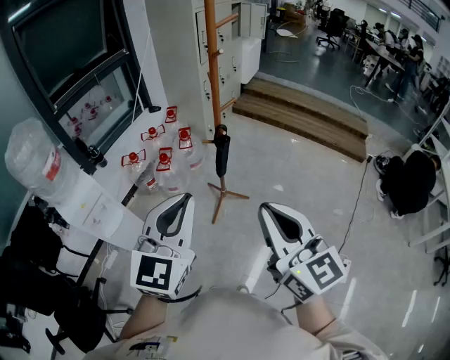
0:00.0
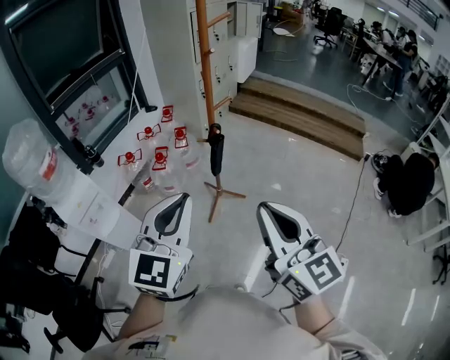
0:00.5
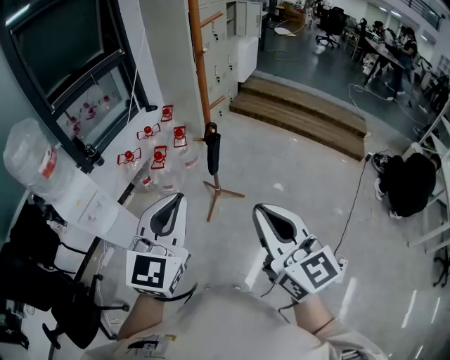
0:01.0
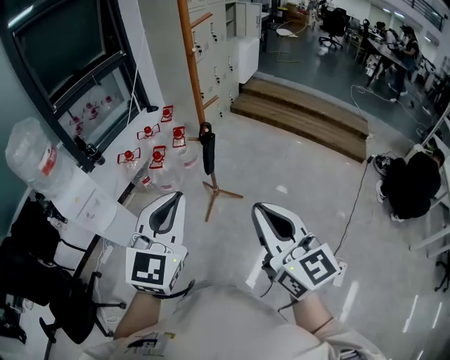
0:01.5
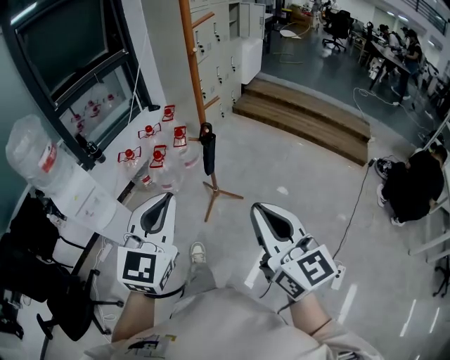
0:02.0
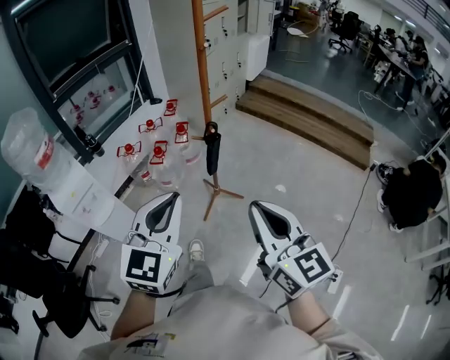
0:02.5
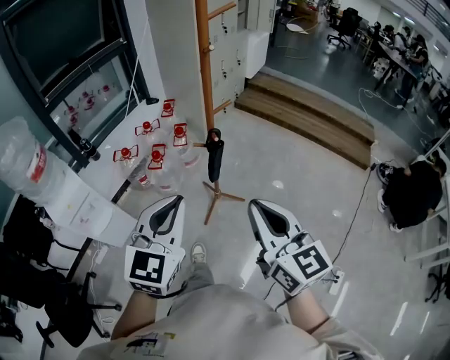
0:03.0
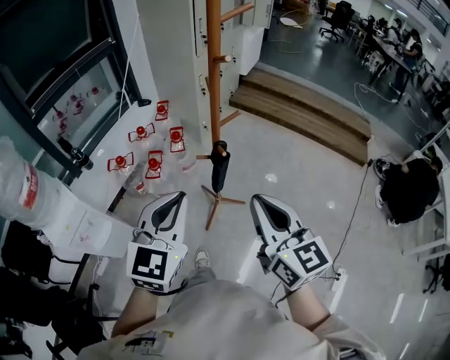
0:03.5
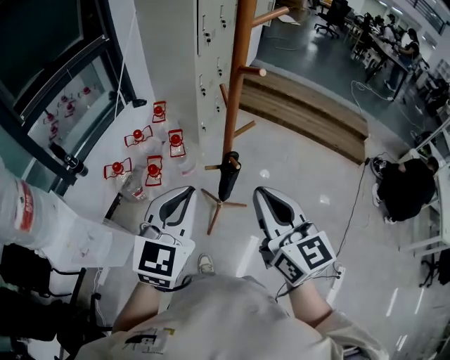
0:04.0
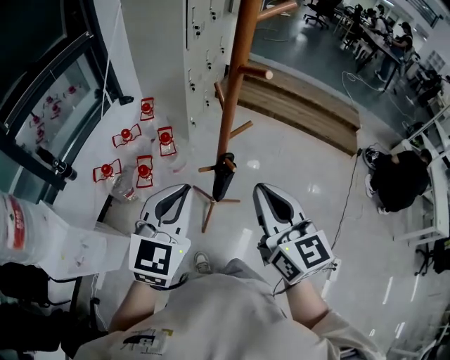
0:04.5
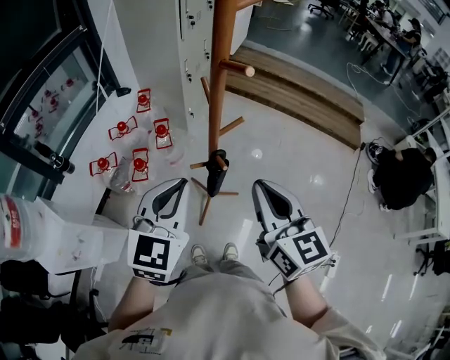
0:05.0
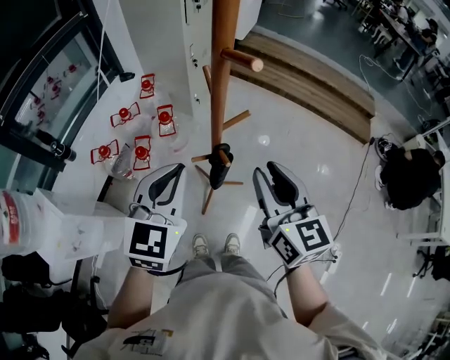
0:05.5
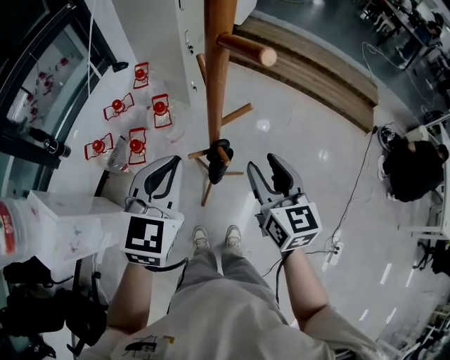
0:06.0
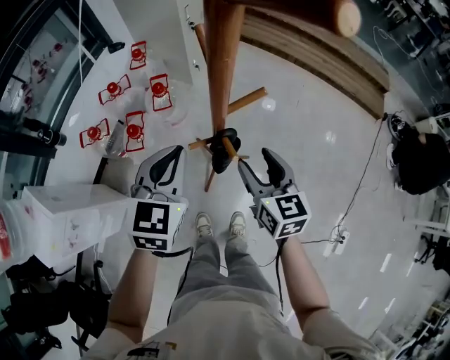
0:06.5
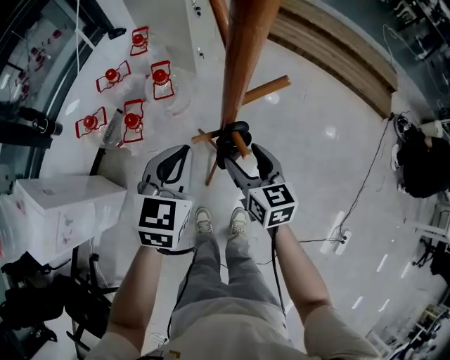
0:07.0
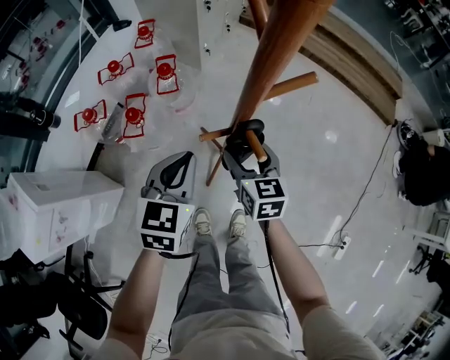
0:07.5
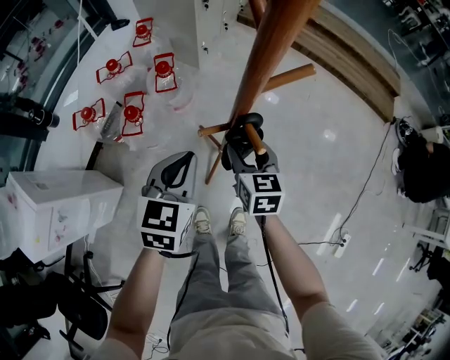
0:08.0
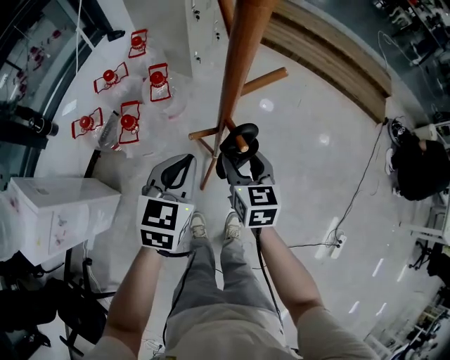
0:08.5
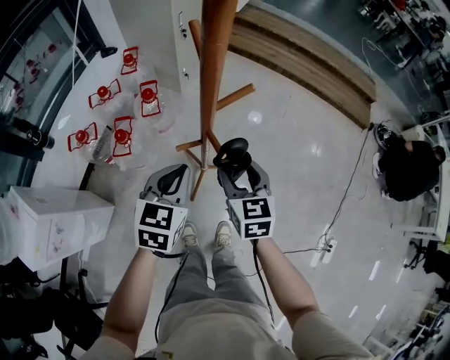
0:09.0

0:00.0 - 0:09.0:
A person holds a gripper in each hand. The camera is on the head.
0:00.0 - 0:02.0: The grippers both shift to the right by some 10 cm.
0:02.0 - 0:04.5: The grippers both shift forward by roughly 35 cm.
0:04.5 - 0:07.0: Both grippers move downward and forward, some 35 cm. The right gripper changes its angle by roughly 20 degrees, and opens up.
0:07.0 - 0:09.0: The right gripper heads upward, covering some 5 cm.

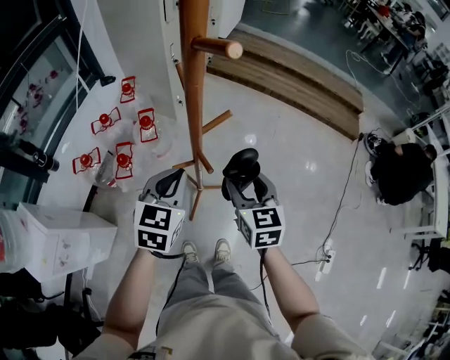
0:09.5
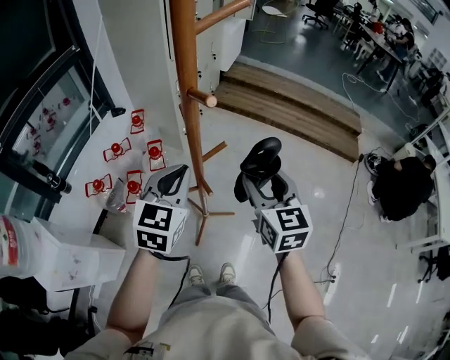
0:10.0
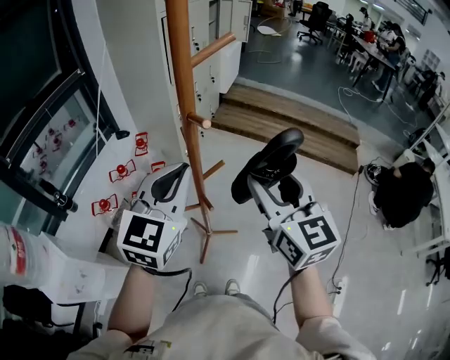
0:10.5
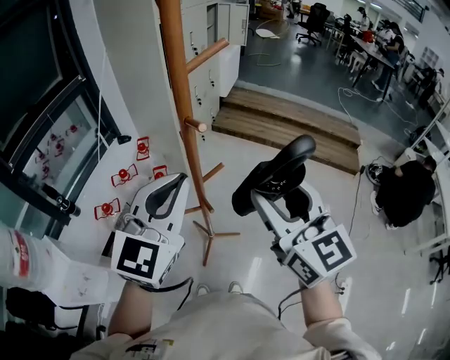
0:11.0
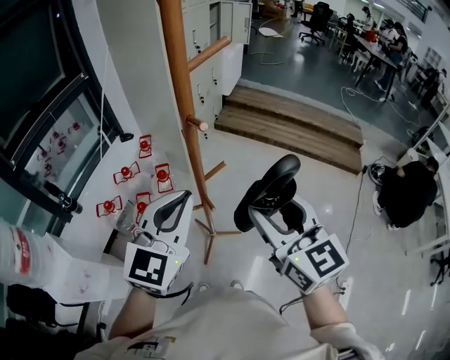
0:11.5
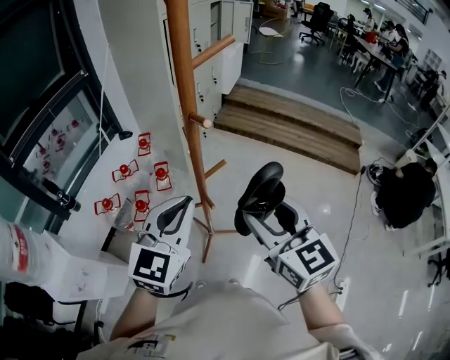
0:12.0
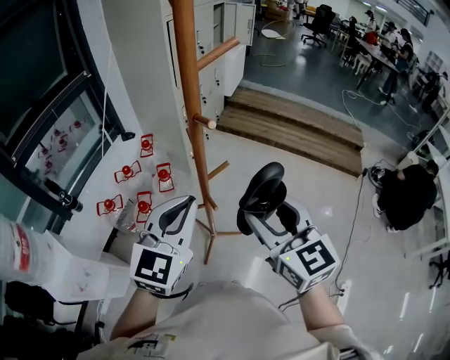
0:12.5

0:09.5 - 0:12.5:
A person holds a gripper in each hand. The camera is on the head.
0:09.5 - 0:11.0: Both grippers travel together upward, about 30 cm. The left gripper rotates approximately 30 degrees. Meanwhile the right gripper changes its angle by approximately 30 degrees.
0:11.0 - 0:12.5: The two grippers go roughly 5 cm downward.

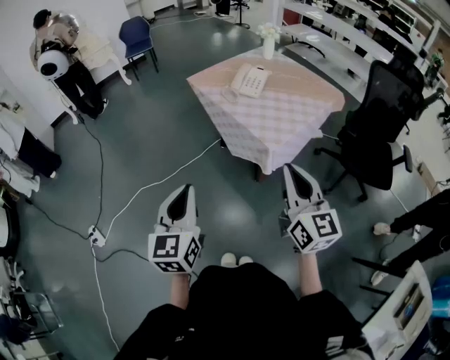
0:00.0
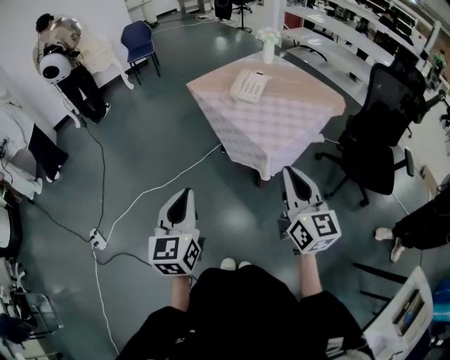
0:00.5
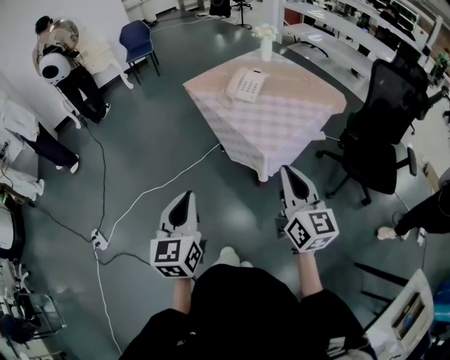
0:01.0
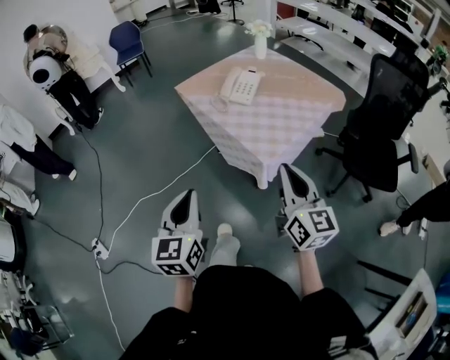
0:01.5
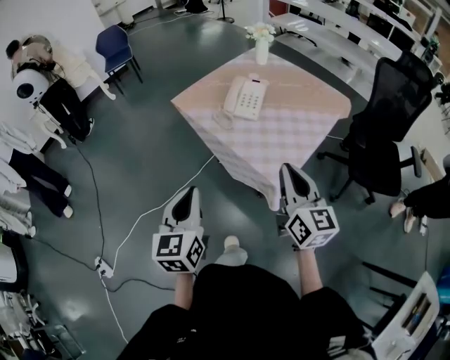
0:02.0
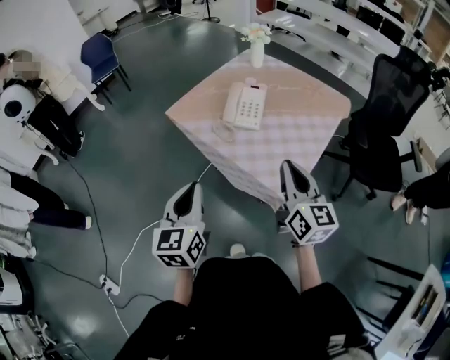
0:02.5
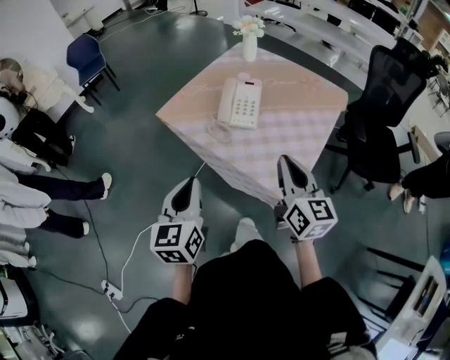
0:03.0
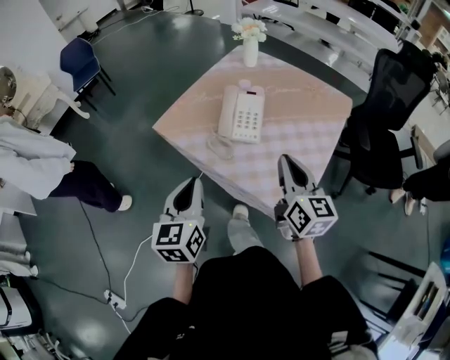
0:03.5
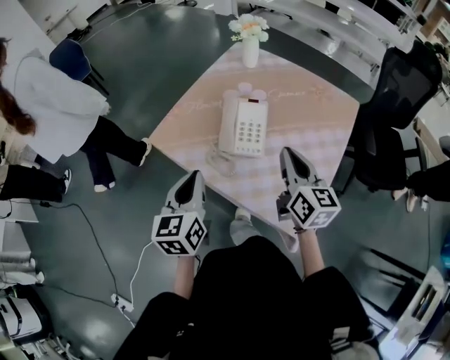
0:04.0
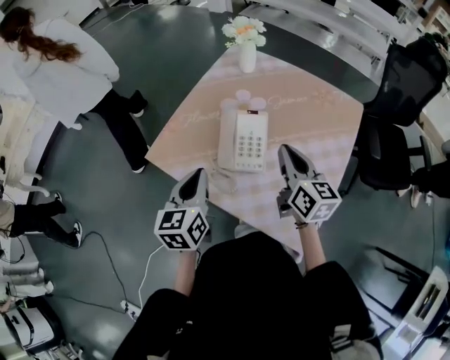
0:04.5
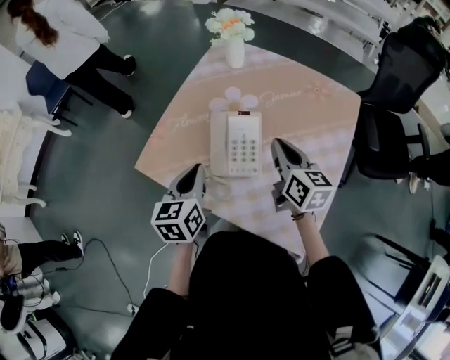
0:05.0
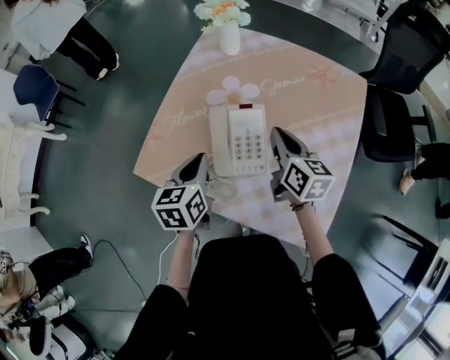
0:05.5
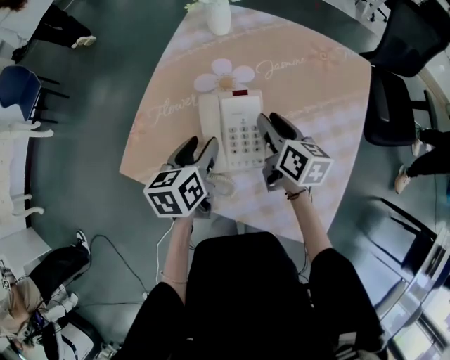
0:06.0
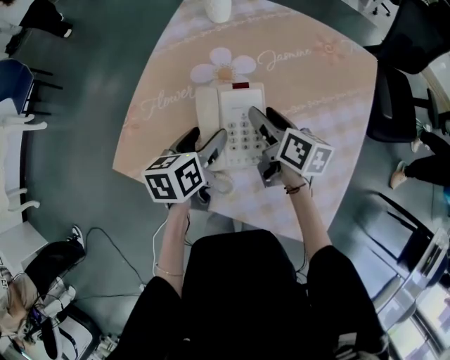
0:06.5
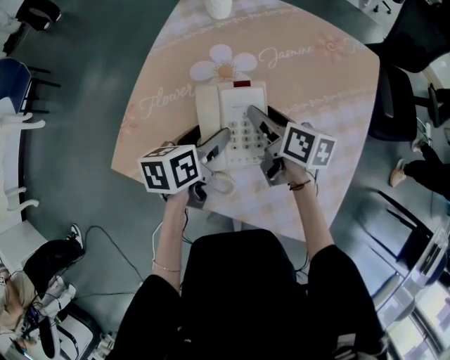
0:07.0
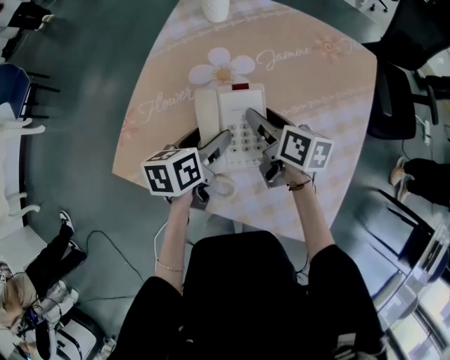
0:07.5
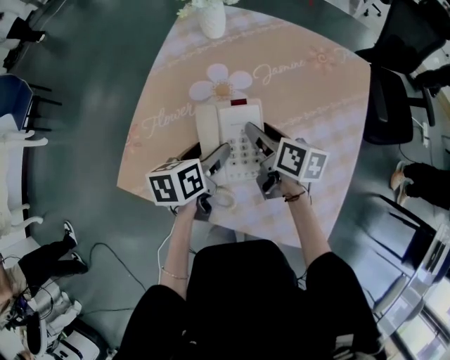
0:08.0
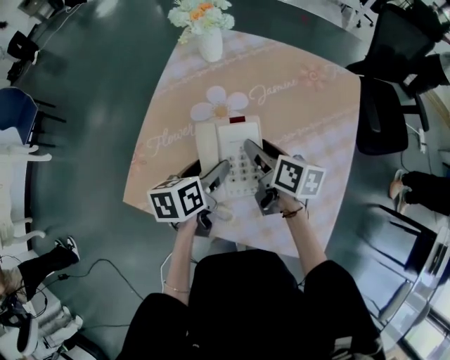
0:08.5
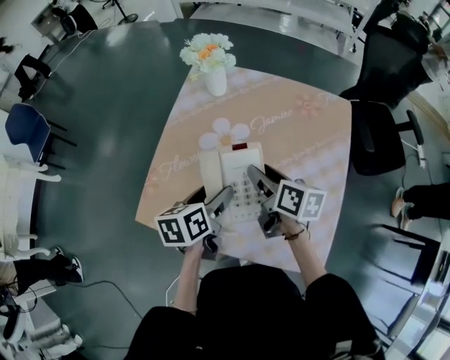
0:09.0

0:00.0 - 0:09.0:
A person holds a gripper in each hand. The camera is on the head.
0:00.0 - 0:02.0: Both grippers move forward, approximately 20 cm.
0:02.0 - 0:04.5: Both grippers travel together forward, about 40 cm.
0:04.5 - 0:07.0: Both grippers travel together downward and forward, some 20 cm. The right gripper rotates about 30 degrees, and opens. The left gripper swivels roughly 40 degrees, and opens its fingers.
0:07.0 - 0:09.0: Both grippers move upward, some 10 cm.

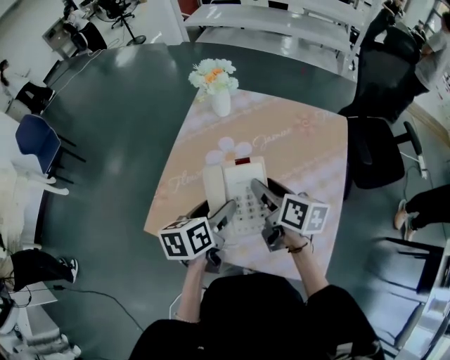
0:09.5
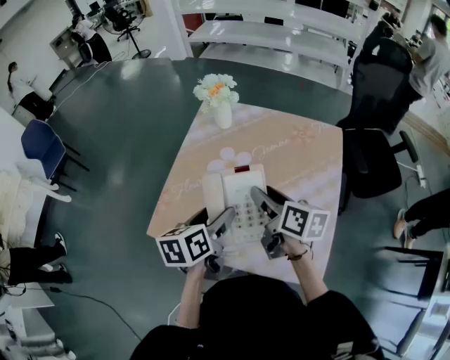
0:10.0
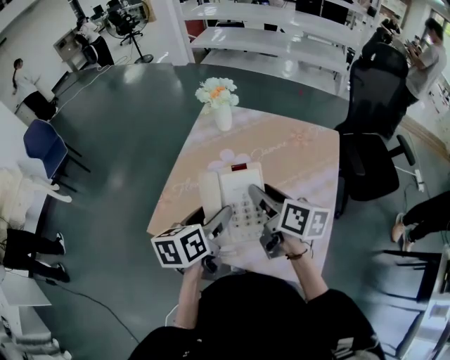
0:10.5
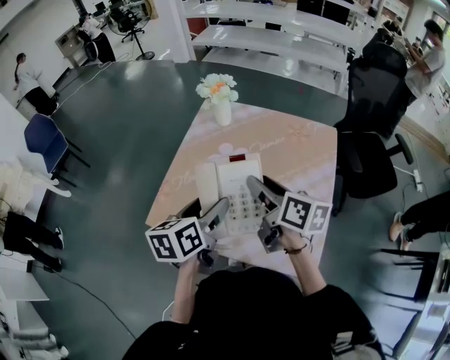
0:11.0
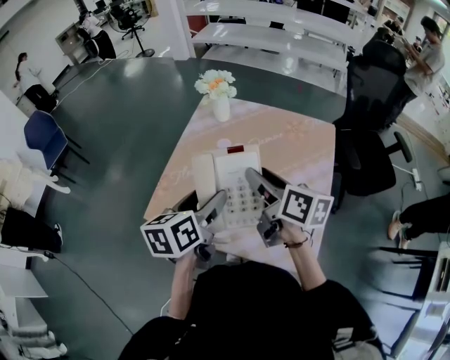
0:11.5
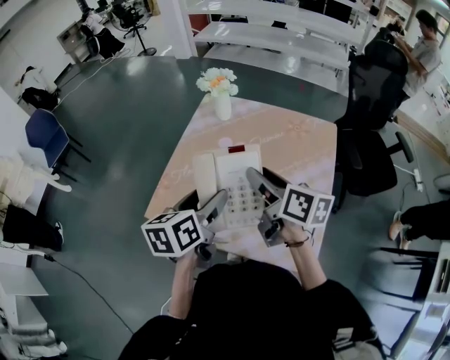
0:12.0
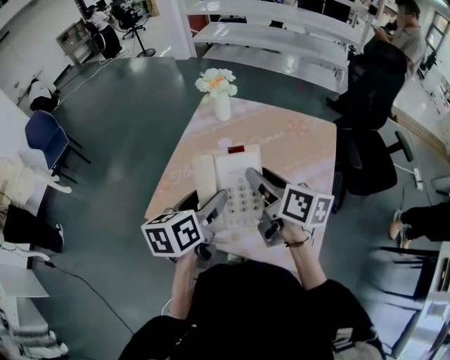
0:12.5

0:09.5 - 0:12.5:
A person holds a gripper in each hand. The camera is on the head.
0:09.5 - 0:11.0: Both grippers move upward, about 10 cm.
0:11.0 - 0:12.5: The grippers move only a little.

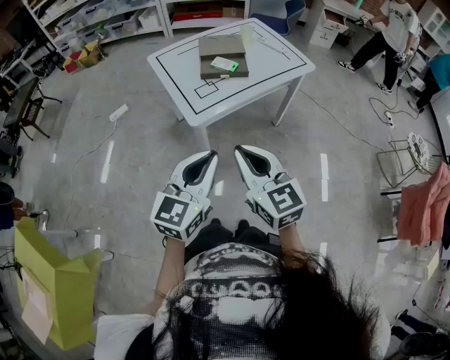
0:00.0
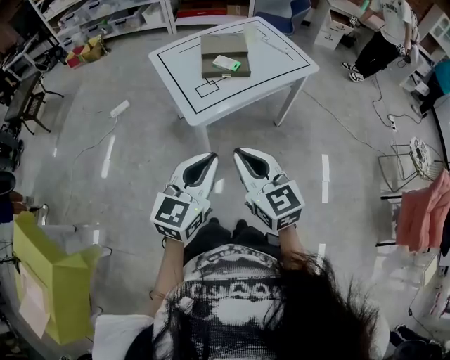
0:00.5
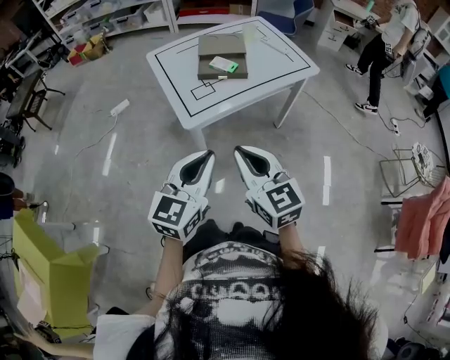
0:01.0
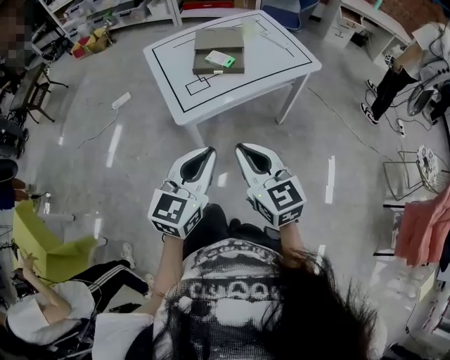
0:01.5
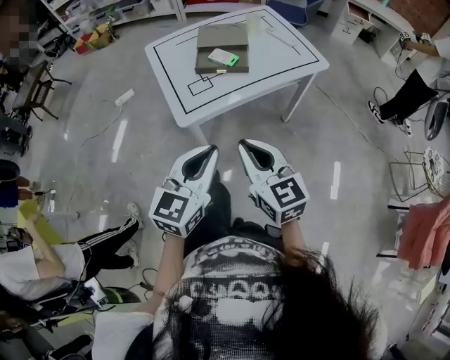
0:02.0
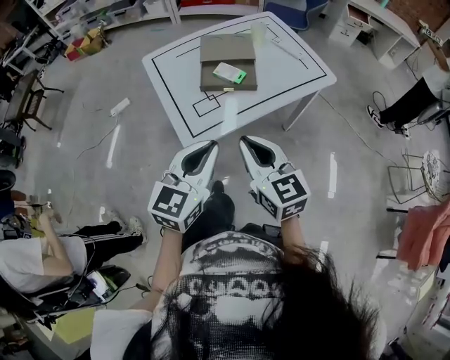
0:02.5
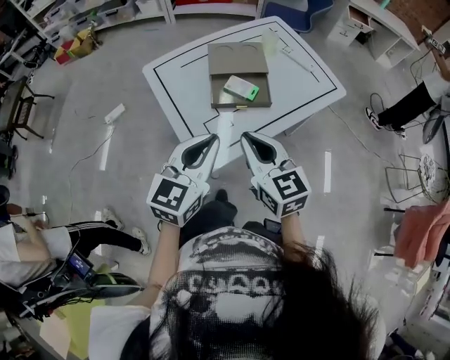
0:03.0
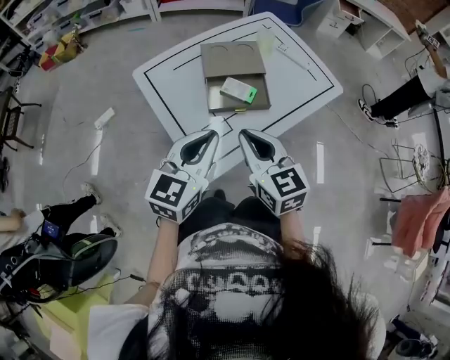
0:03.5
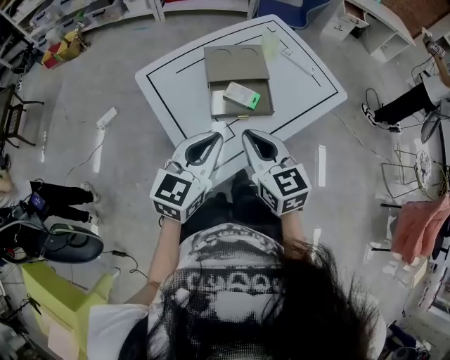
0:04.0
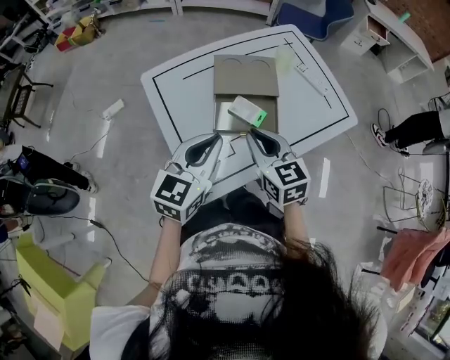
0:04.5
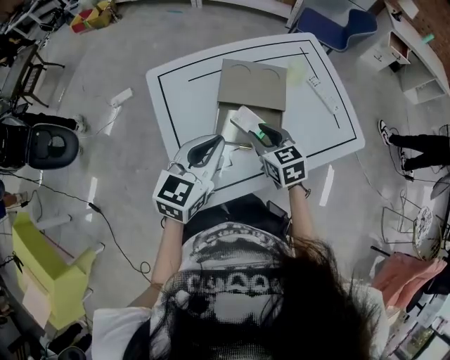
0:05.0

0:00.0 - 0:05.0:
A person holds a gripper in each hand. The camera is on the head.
0:00.0 - 0:02.5: The two grippers go about 20 cm forward.
0:02.5 - 0:05.0: Both grippers move forward, approximately 35 cm. The right gripper changes its angle by approximately 20 degrees.
